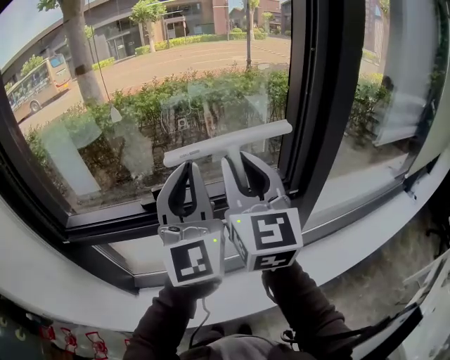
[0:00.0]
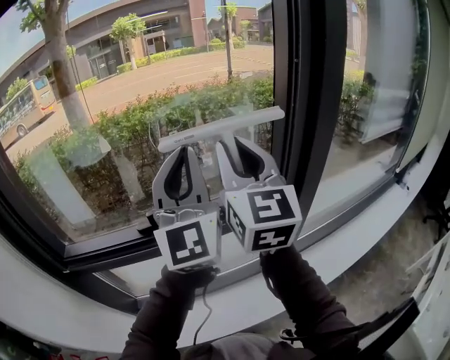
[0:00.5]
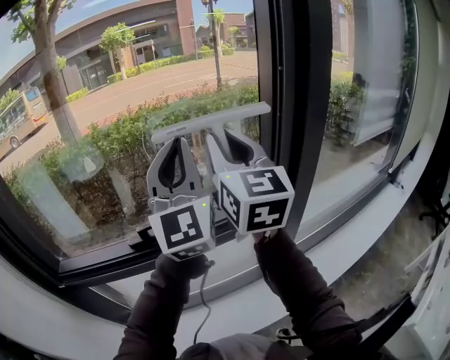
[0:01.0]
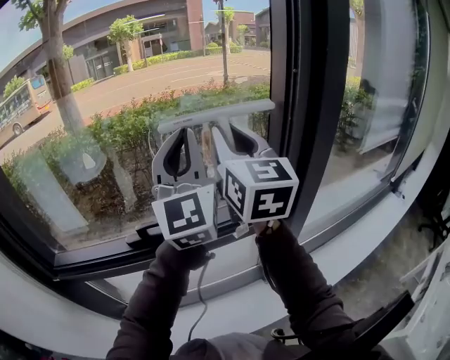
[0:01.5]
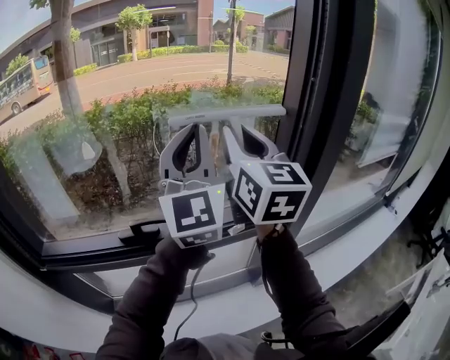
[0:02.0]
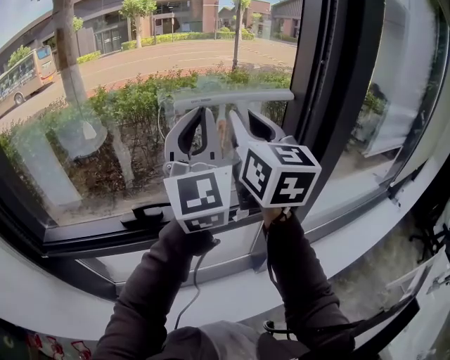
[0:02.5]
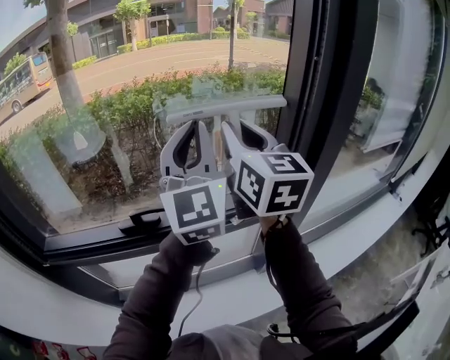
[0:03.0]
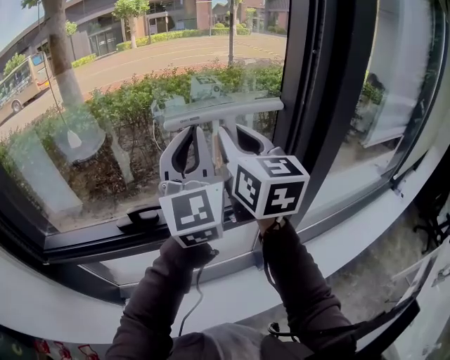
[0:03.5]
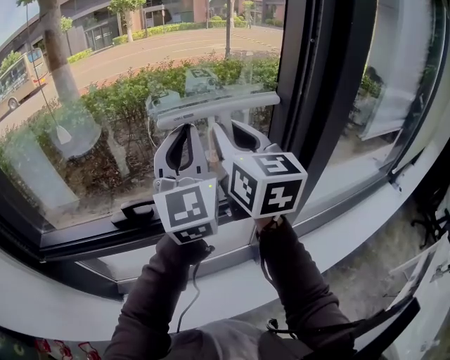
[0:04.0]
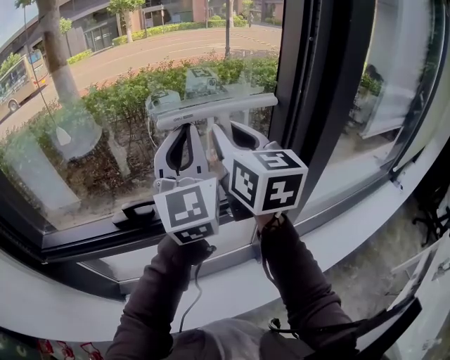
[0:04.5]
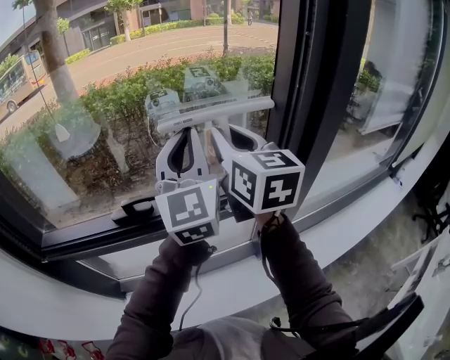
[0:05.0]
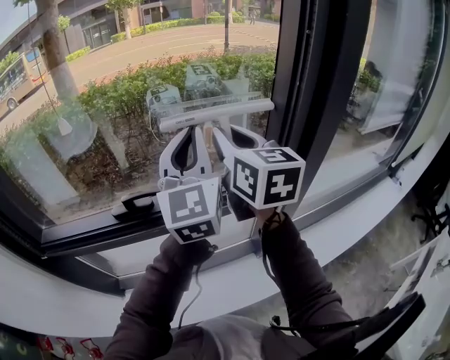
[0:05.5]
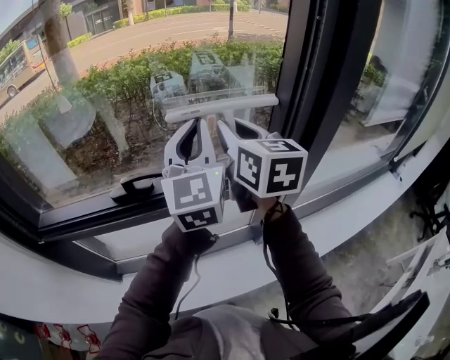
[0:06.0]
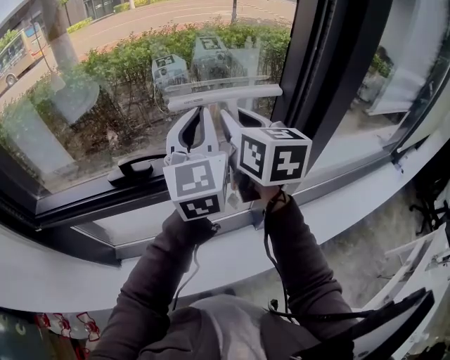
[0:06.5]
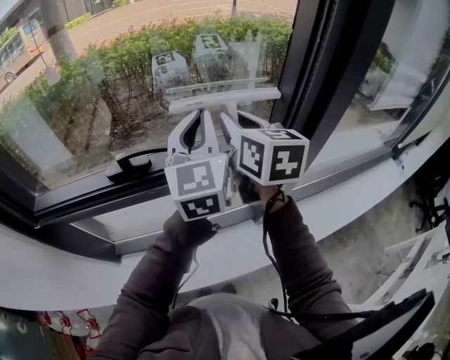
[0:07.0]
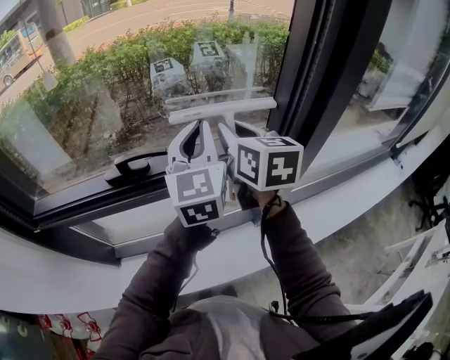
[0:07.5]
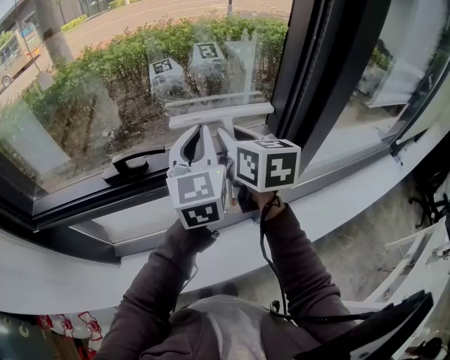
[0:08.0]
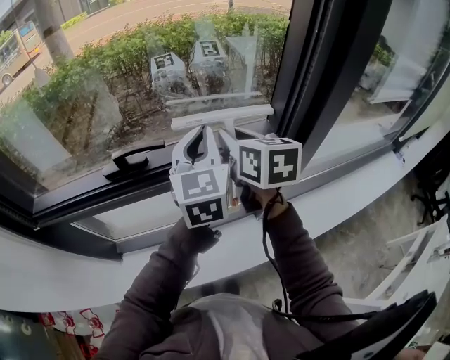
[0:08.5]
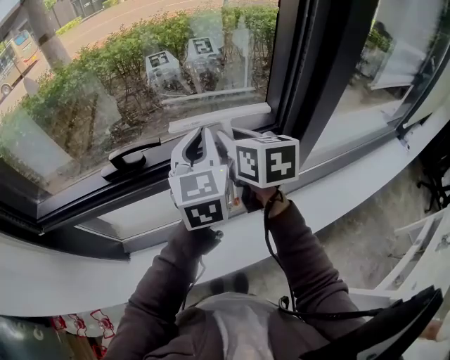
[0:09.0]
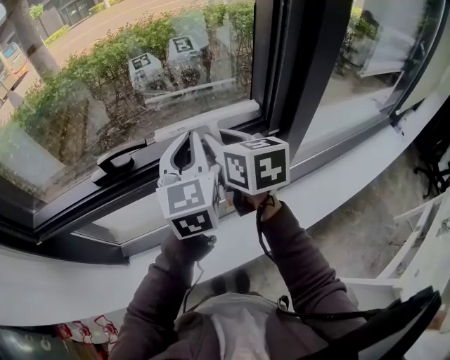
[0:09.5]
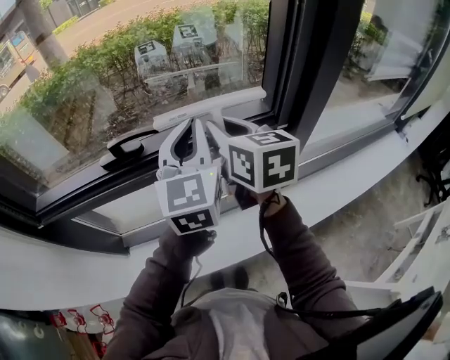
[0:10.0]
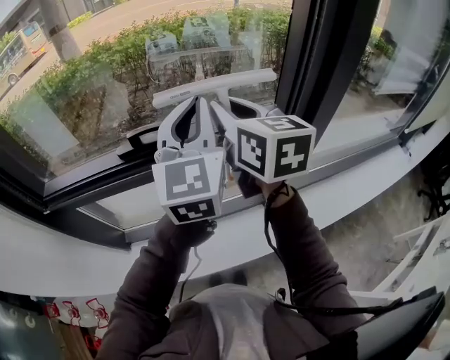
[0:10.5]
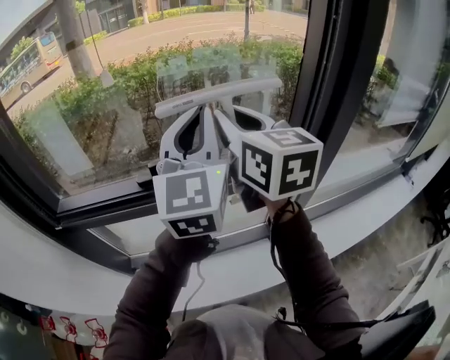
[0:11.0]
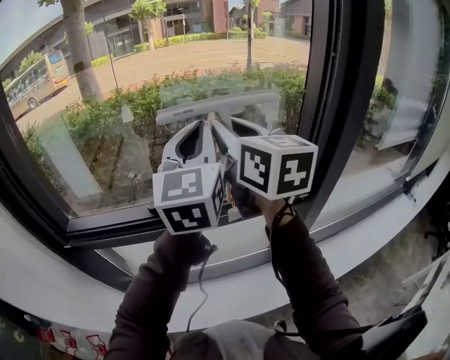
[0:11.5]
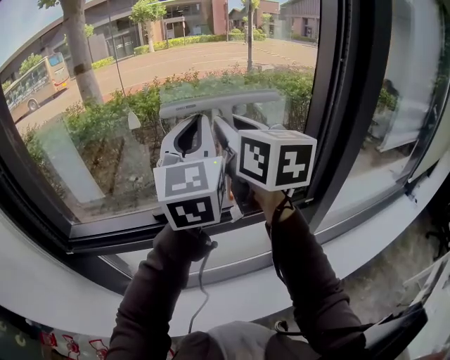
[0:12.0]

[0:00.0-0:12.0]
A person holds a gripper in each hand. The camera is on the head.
0:00.0 to 0:02.0: The left gripper shifts about 15 cm forward, upward and to the right. Meanwhile the right gripper is displaced forward and upward by some 15 cm.
0:02.0 to 0:04.0: Both grippers travel together downward, approximately 5 cm.
0:04.0 to 0:06.0: The grippers make only small movements.
0:06.0 to 0:08.0: Both grippers move downward, roughly 10 cm.
0:08.0 to 0:10.0: The left gripper changes place by roughly 5 cm.
0:10.0 to 0:12.0: The grippers both shift upward and to the left by some 20 cm.

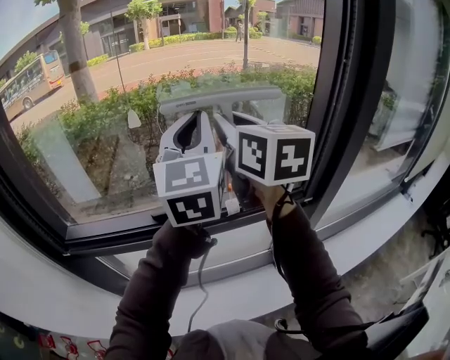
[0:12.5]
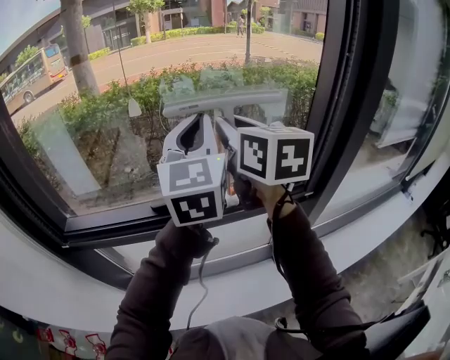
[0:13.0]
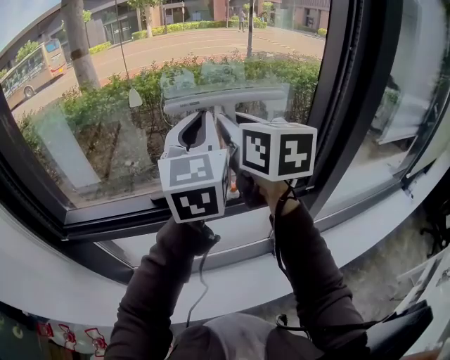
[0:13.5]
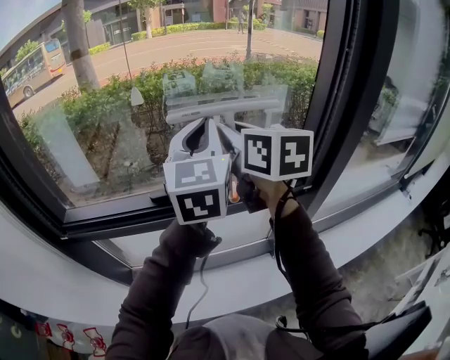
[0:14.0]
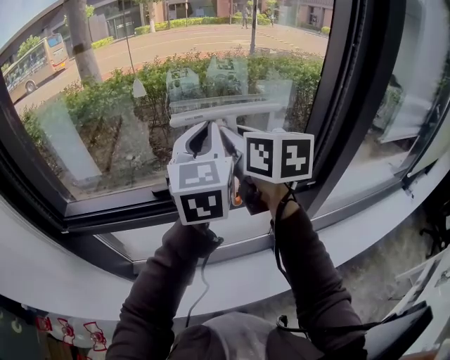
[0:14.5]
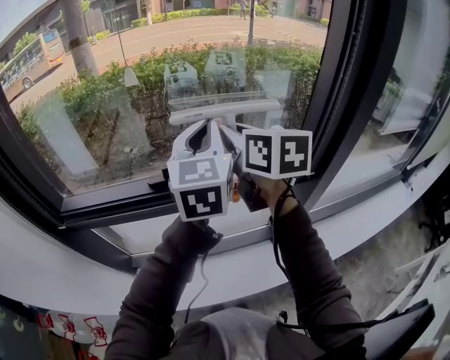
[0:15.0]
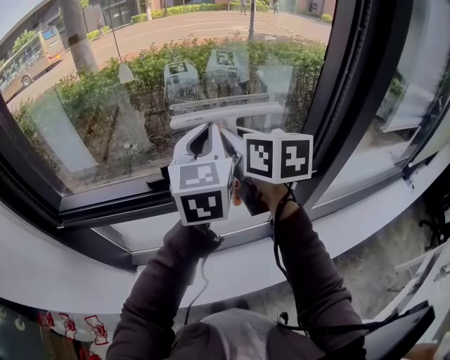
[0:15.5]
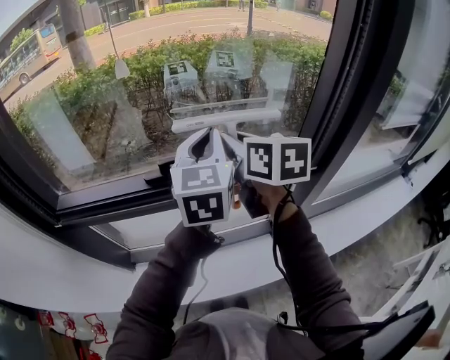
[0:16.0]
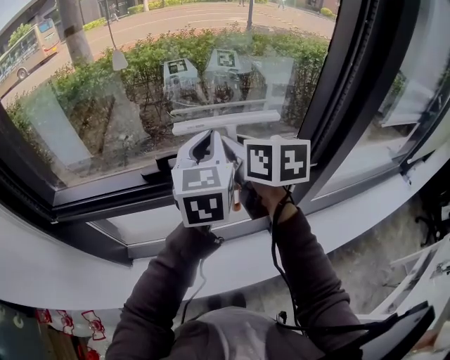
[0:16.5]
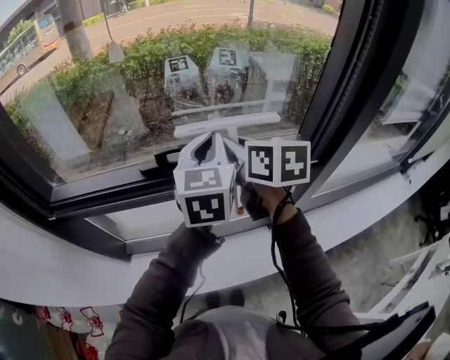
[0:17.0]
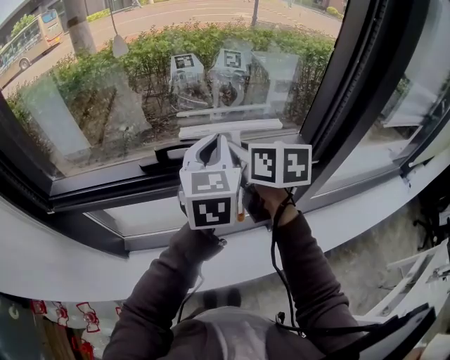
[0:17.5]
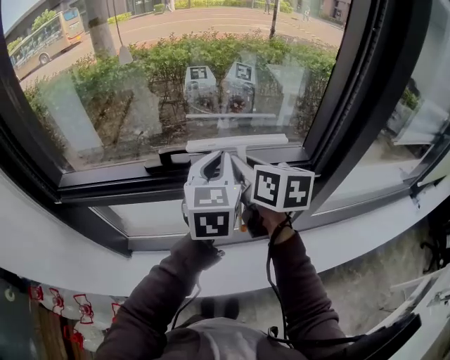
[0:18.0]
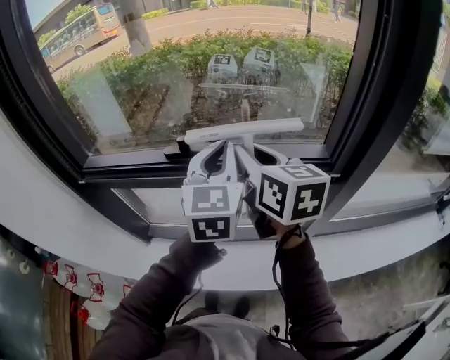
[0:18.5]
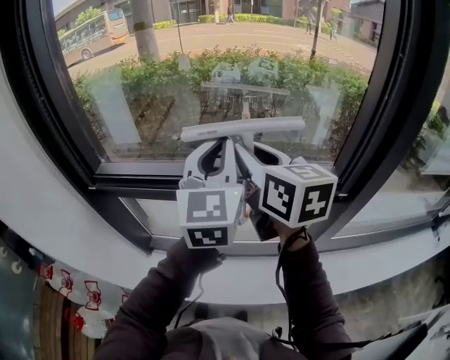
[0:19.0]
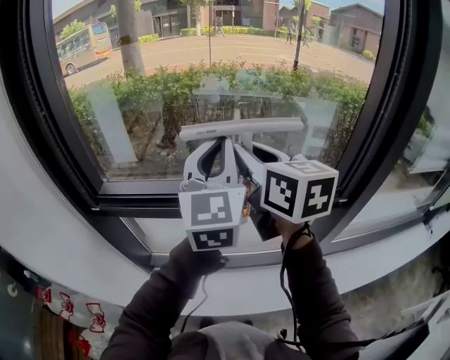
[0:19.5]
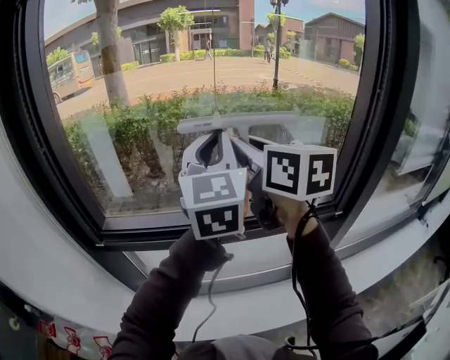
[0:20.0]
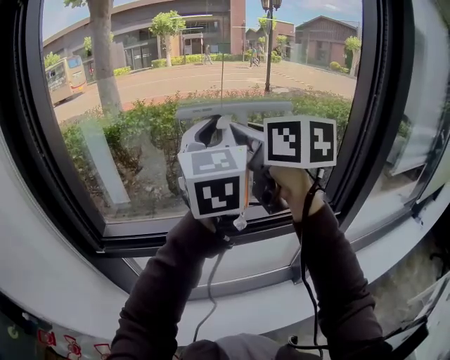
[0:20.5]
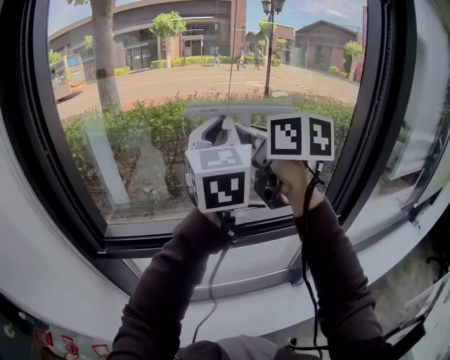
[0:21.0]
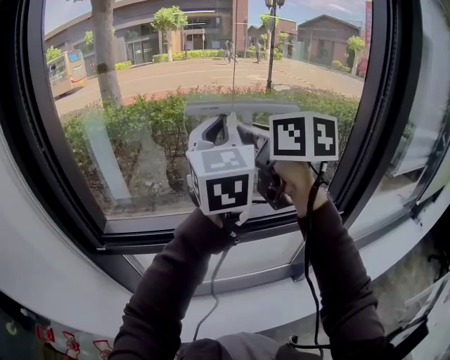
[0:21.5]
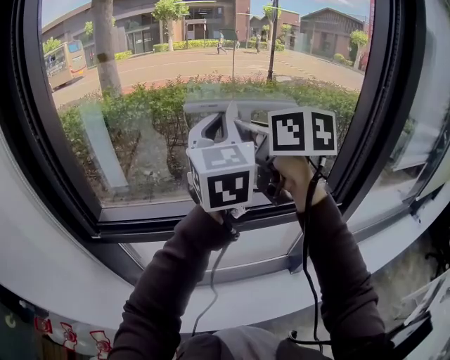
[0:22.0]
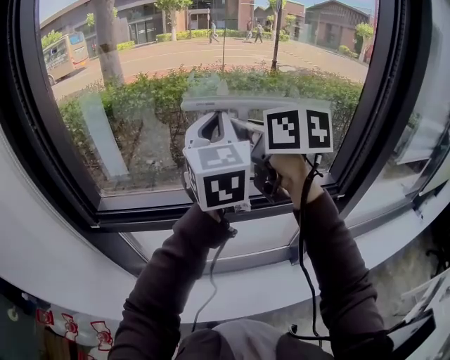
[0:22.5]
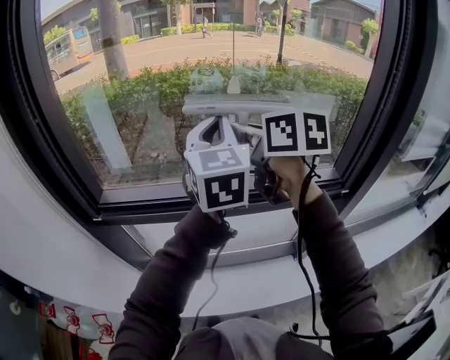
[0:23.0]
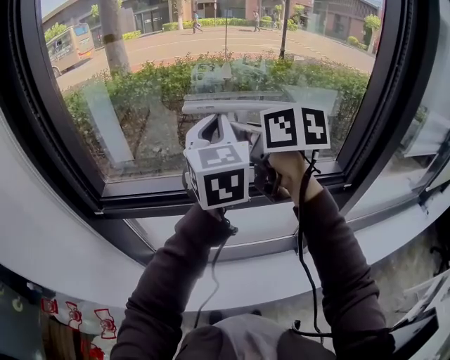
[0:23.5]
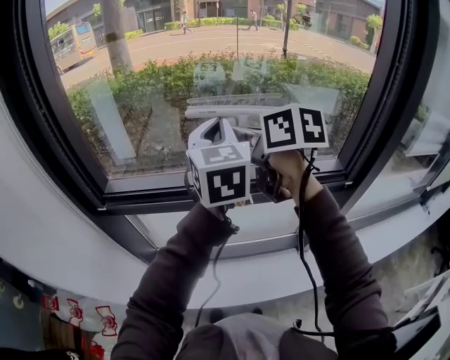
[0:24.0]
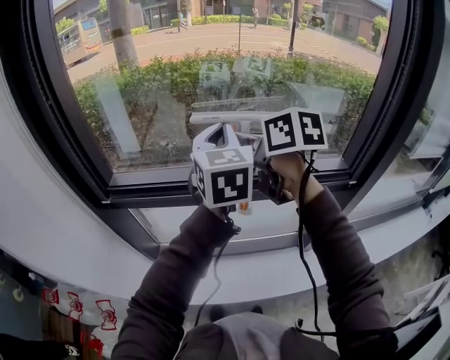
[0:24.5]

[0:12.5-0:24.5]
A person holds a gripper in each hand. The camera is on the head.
0:12.5 to 0:14.5: The two grippers go approximately 10 cm downward.
0:14.5 to 0:16.5: Both grippers travel together downward, roughly 10 cm.
0:16.5 to 0:18.5: Both grippers move backward, some 5 cm.
0:18.5 to 0:20.5: Both grippers travel together upward and to the left, about 25 cm.
0:20.5 to 0:22.5: The two grippers go some 5 cm downward.
0:22.5 to 0:24.5: The grippers both shift downward by roughly 10 cm.

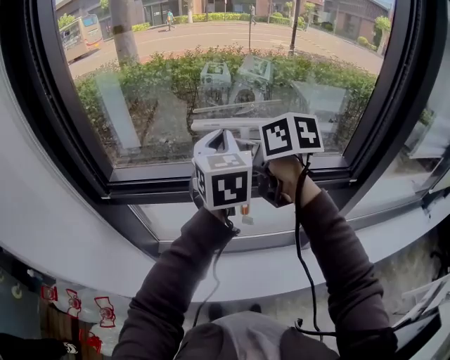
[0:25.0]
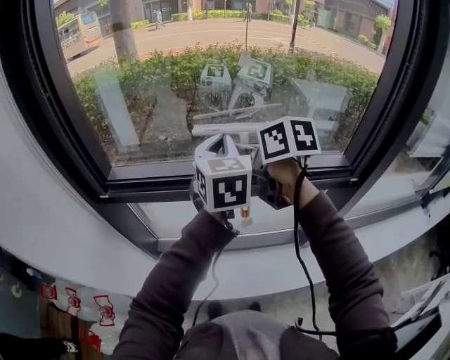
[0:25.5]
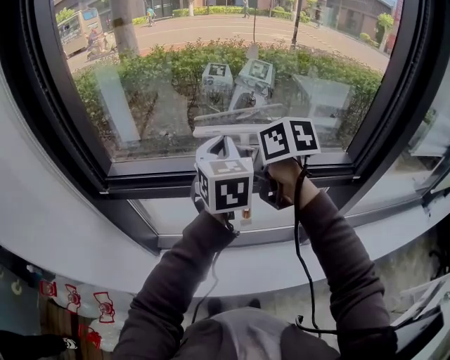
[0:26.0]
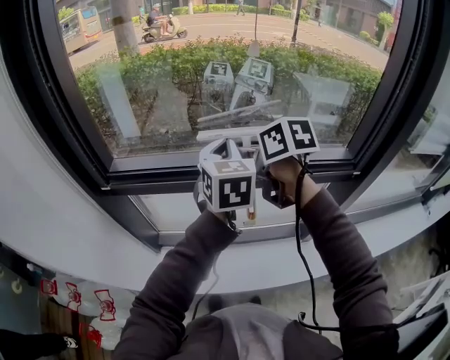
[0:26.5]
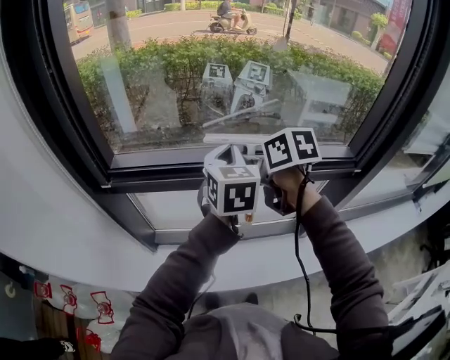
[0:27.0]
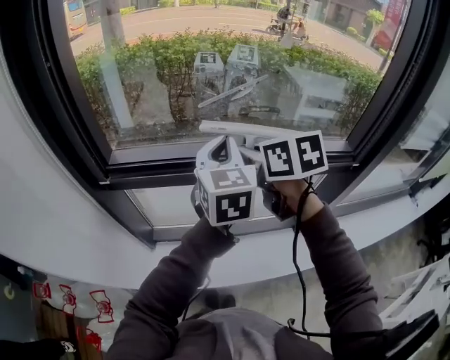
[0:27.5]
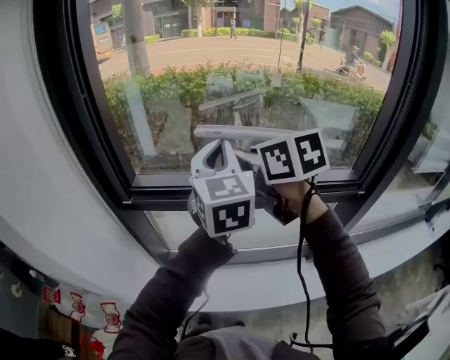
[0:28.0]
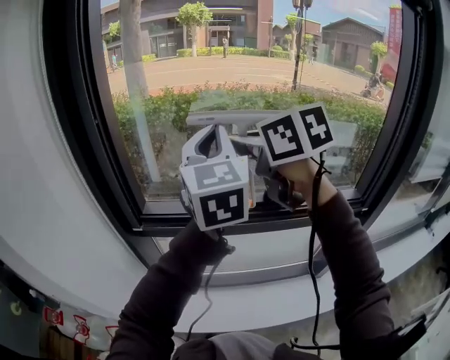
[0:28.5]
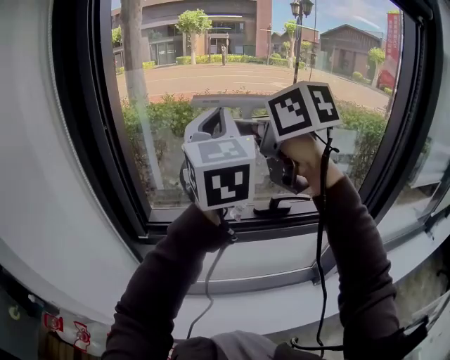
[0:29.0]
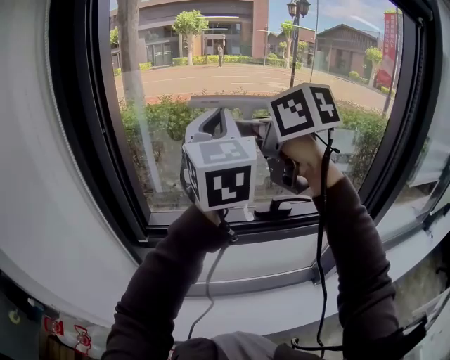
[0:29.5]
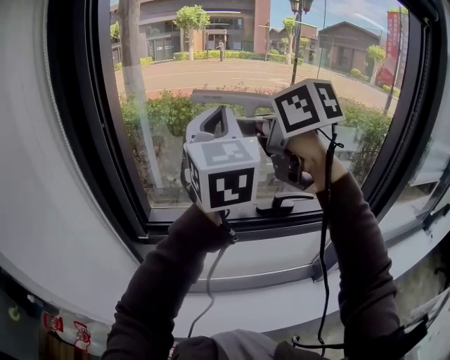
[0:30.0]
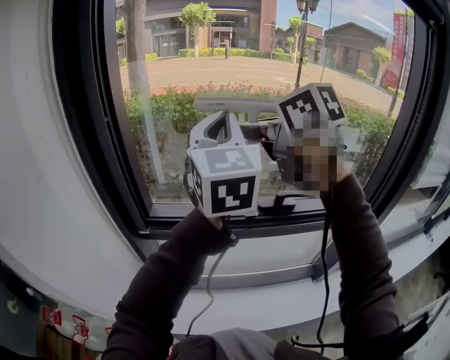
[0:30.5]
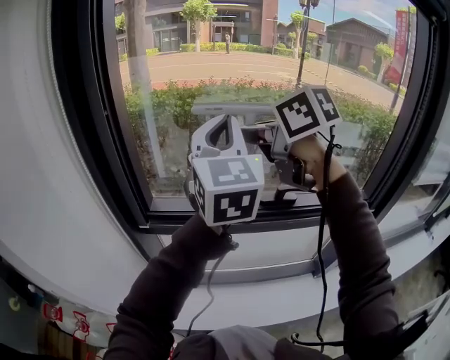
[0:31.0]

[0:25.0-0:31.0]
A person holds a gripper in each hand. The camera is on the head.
0:25.0 to 0:27.0: Both grippers move downward, some 10 cm.
0:27.0 to 0:29.0: The two grippers go some 30 cm upward. The left gripper swivels some 30 degrees. The right gripper turns by some 30 degrees.
0:29.0 to 0:31.0: Both grippers move downward, some 5 cm.
